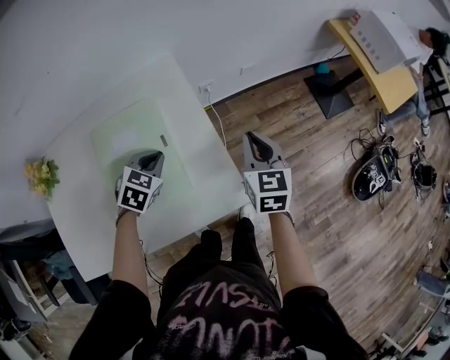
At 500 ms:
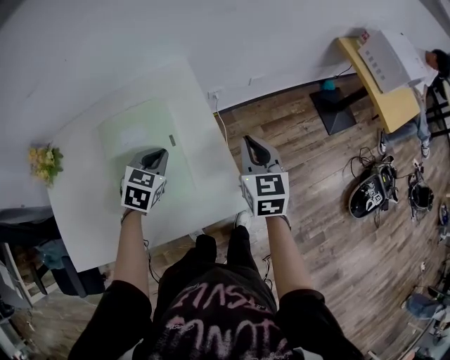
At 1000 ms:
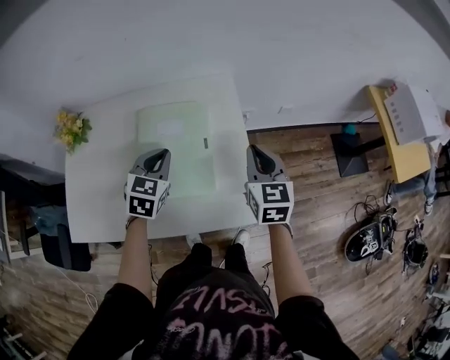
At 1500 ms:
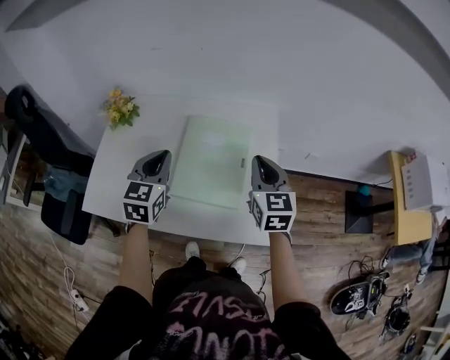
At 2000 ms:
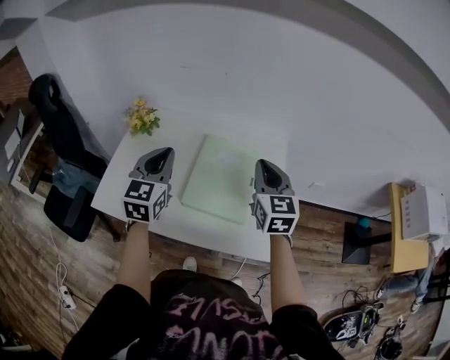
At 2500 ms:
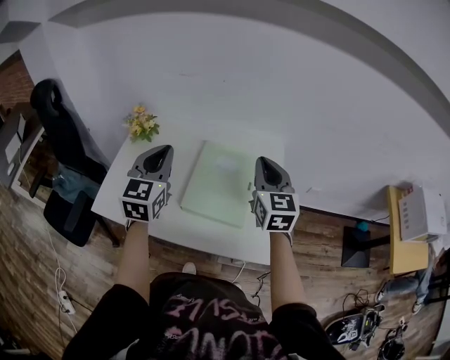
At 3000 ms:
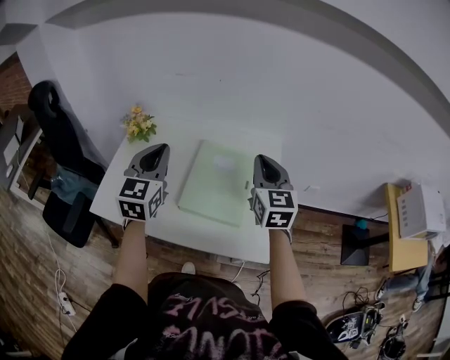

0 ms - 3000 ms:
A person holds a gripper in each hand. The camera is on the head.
0 ms - 1500 ms: The right gripper shifts by about 25 cm, and turns by approximately 30 degrees; the left gripper ends up about 30 cm from where it was, and points its fingers roughly 30 degrees further upward.
1500 ms - 3000 ms: The two grippers go roughly 10 cm upward.

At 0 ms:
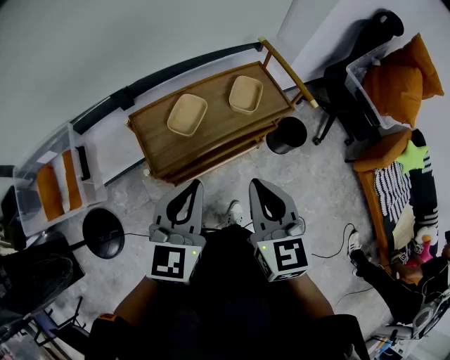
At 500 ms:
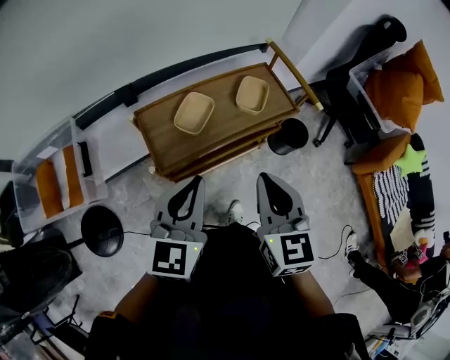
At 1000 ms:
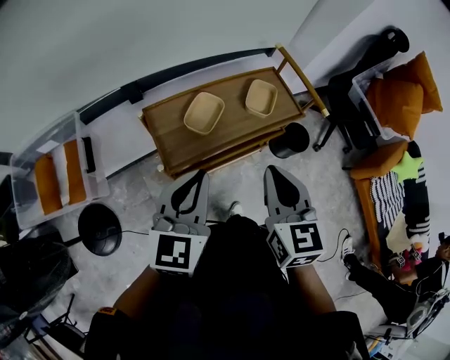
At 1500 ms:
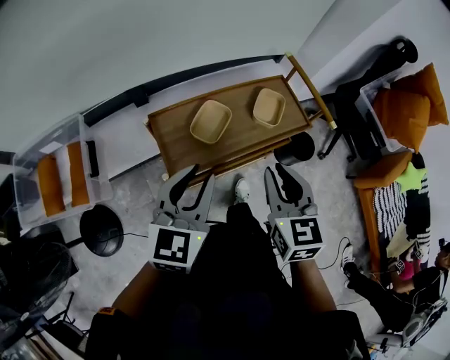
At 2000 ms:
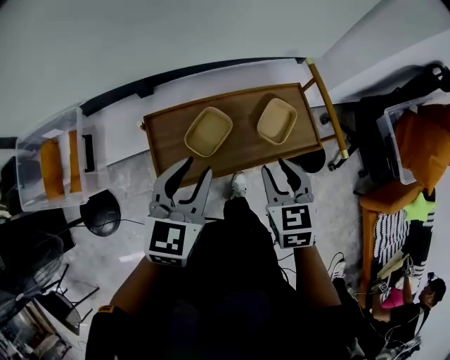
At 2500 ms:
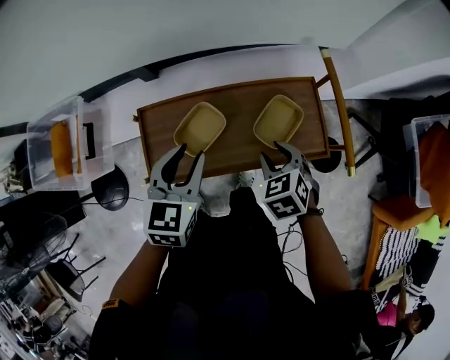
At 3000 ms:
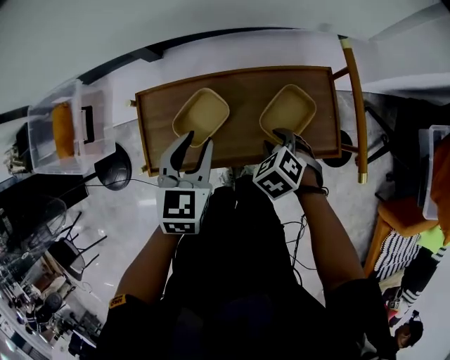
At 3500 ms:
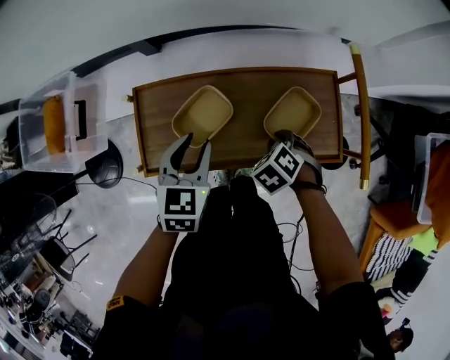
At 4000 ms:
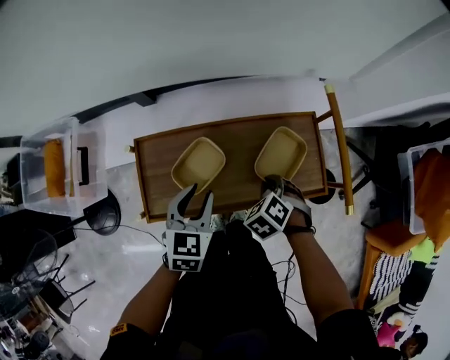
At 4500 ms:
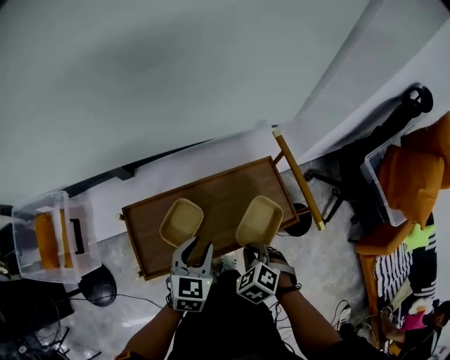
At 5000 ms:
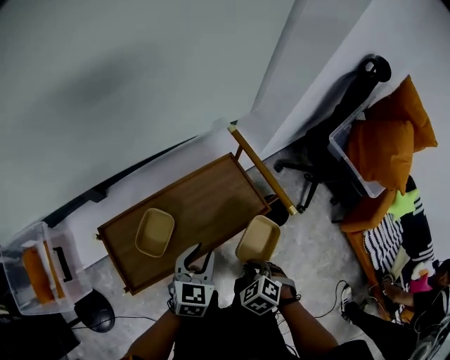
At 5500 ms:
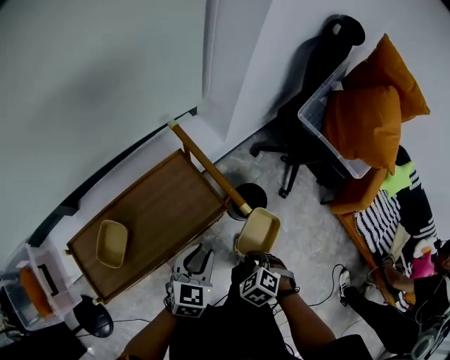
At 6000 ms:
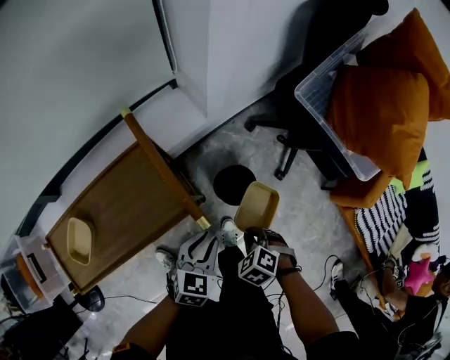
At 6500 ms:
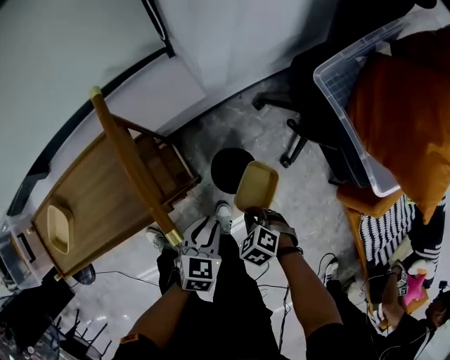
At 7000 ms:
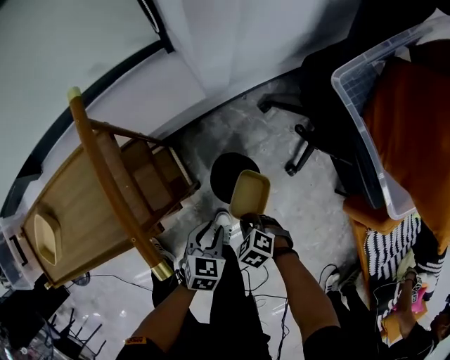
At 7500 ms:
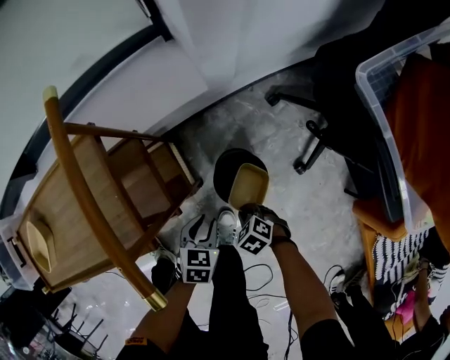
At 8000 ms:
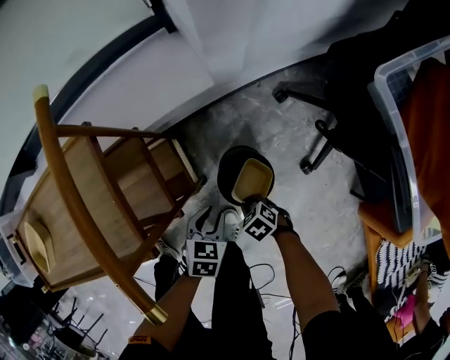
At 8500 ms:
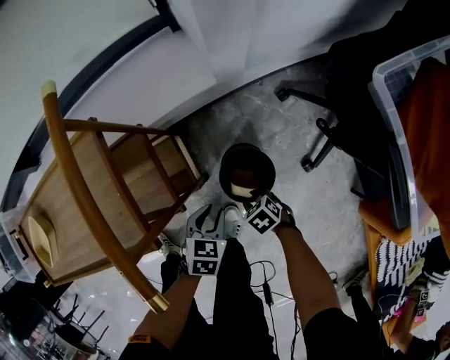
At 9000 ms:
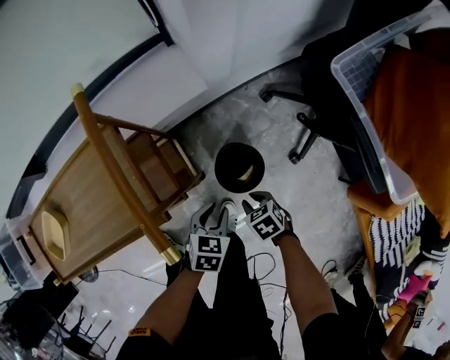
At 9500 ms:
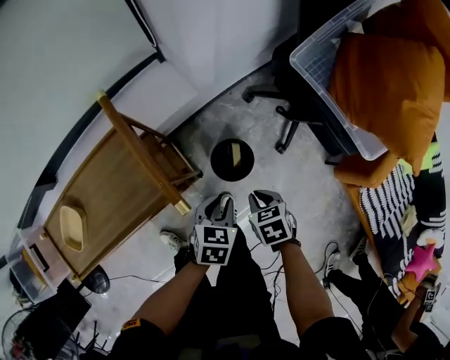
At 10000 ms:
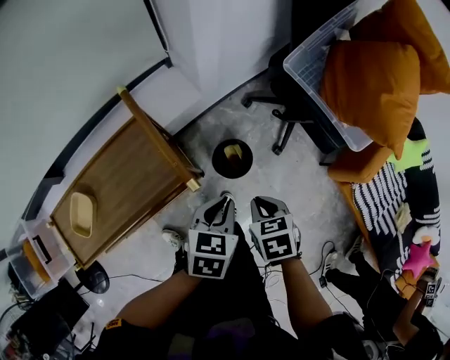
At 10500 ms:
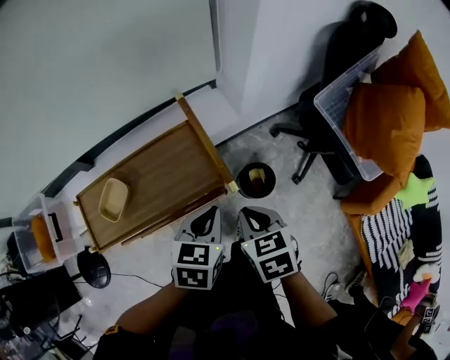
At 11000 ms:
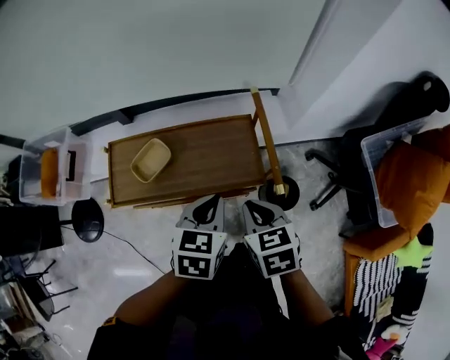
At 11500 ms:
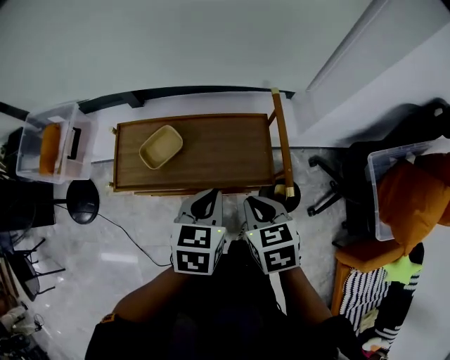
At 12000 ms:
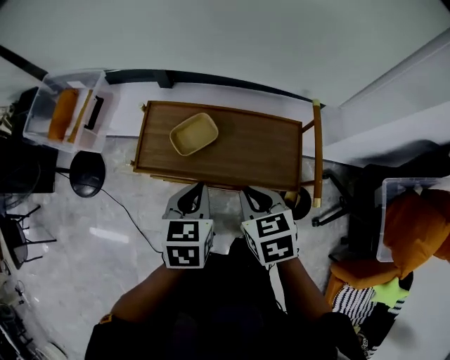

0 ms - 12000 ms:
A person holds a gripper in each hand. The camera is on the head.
0 ms - 2000 ms: The left gripper goes about 15 cm forward, and opens its fingers; the right gripper is displaced forward and downward by roughly 20 cm, changes its angle by roughly 20 degrees, and opens.
2000 ms - 4000 ms: The two grippers go some 20 cm downward. The right gripper tips its fingers downward by approximately 30 degrees, and closes.
4000 ms - 6000 ms: The pair of grippers is taken to the right, some 40 cm. The left gripper rotates about 40 degrees, while the right gripper changes its angle by roughly 20 degrees.
6000 ms - 8000 ms: Both grippers move downward, roughly 30 cm. The right gripper turns by roughly 20 degrees, while the left gripper rotates about 30 degrees.
8000 ms - 10000 ms: Both grippers travel together upward, some 40 cm. The right gripper rotates some 50 degrees, and opens and closes again.
10000 ms - 12000 ms: The pair of grippers is taken about 40 cm. The left gripper changes its angle by some 50 degrees; the right gripper rotates around the line of its fingers by roughly 40 degrees, counterclockwise from behind.

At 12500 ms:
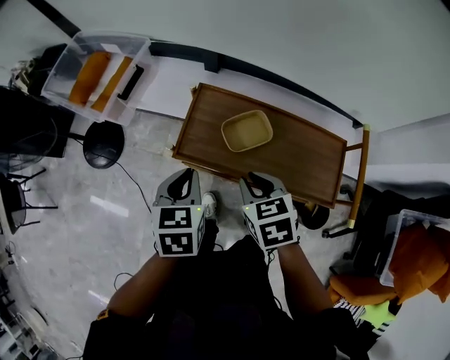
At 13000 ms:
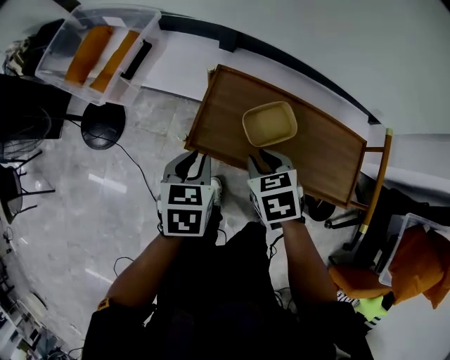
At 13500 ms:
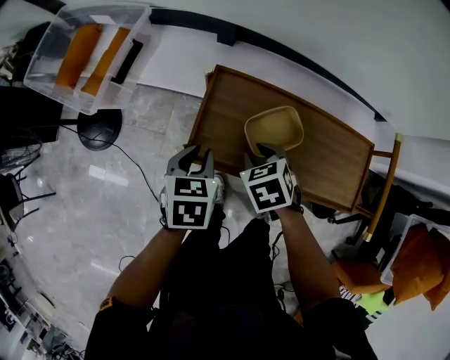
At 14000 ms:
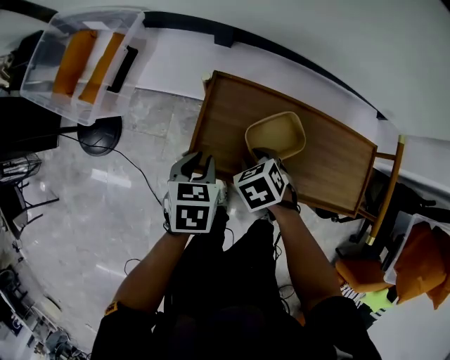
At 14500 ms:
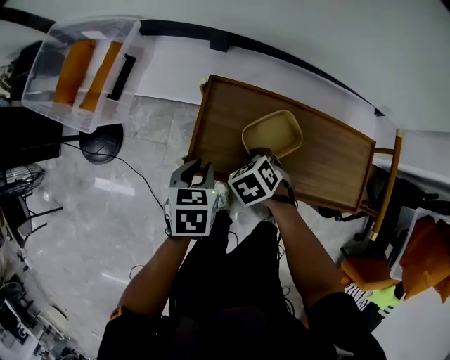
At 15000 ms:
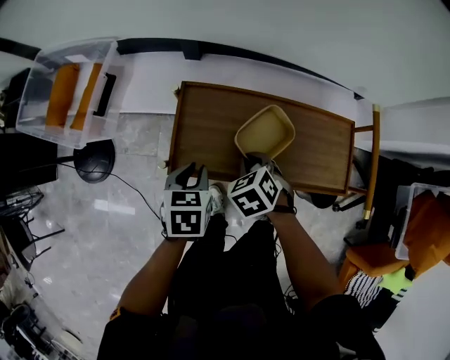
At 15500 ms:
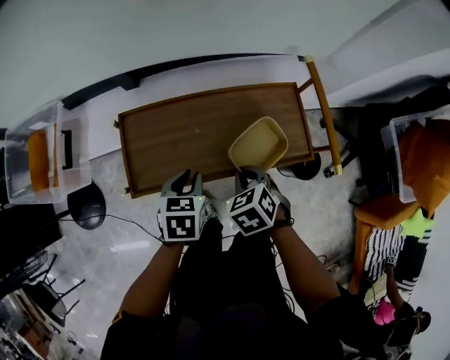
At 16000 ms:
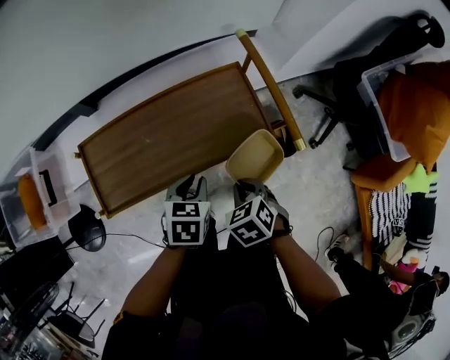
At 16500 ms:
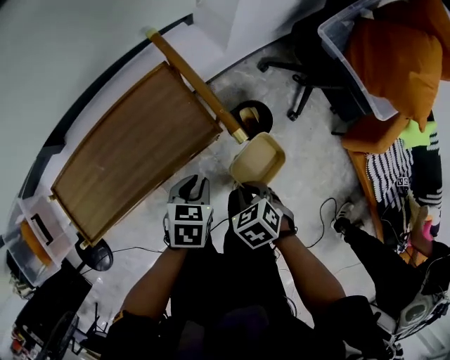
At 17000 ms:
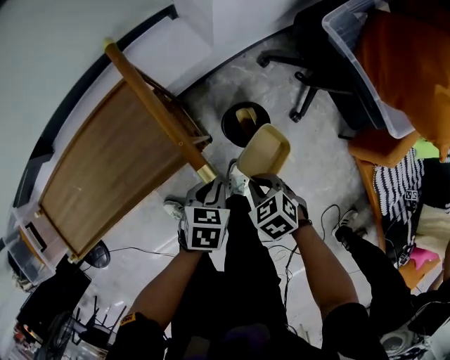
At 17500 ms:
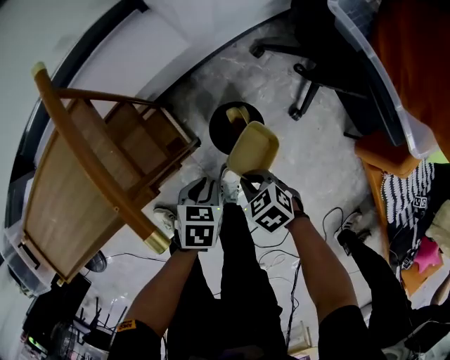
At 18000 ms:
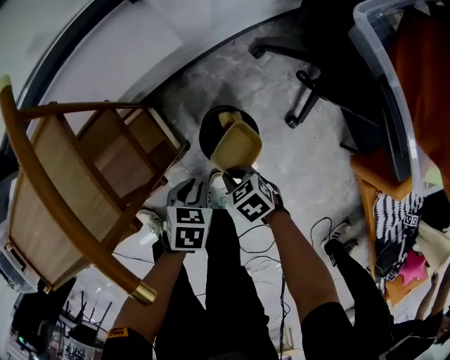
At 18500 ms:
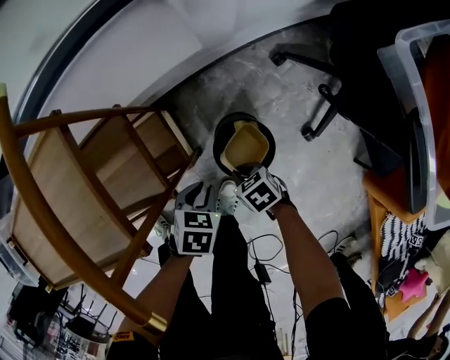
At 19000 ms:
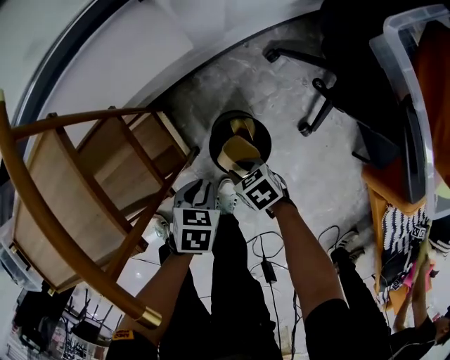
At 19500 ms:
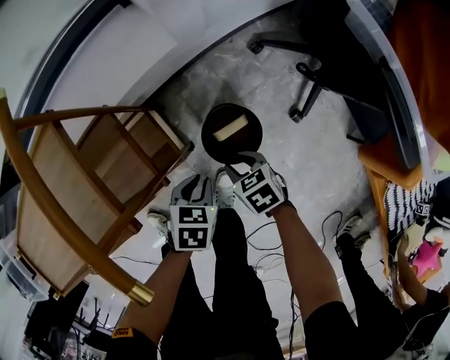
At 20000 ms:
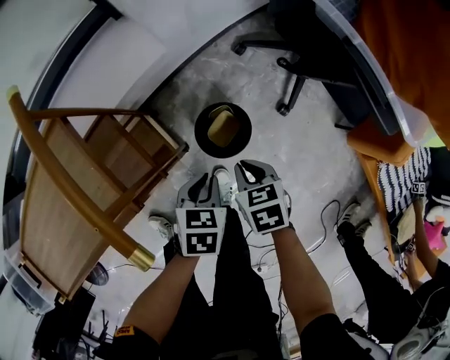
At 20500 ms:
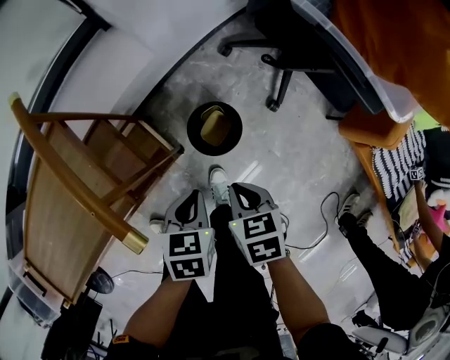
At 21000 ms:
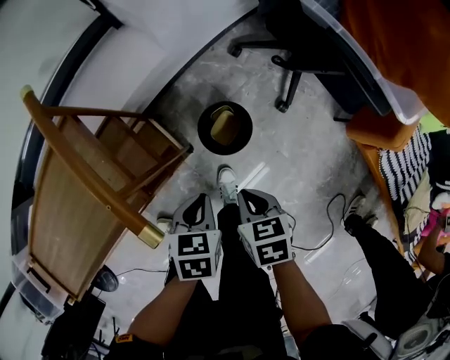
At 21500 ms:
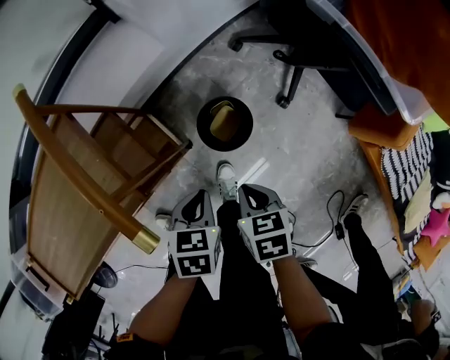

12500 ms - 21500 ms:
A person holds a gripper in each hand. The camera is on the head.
12500 ms - 14500 ms: The grippers both shift downward by roughly 15 cm. The right gripper swivels some 30 degrees.
14500 ms - 17000 ms: Both grippers are carried roughly 60 cm. The right gripper turns by about 40 degrees, while the left gripper rotates around the line of its fingers by approximately 40 degrees, clockwise from behind.
17000 ms - 19500 ms: The two grippers go approximately 20 cm downward. The right gripper opens.
19500 ms - 21500 ms: The grippers both shift upward and backward by approximately 15 cm. The right gripper rotates roughly 30 degrees, and closes its fingers.

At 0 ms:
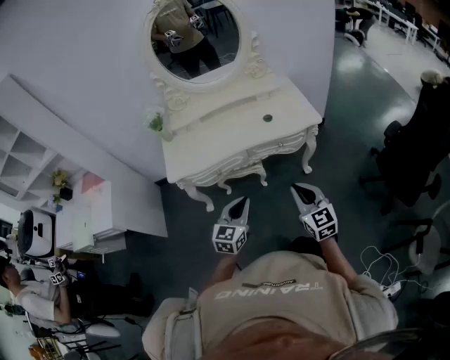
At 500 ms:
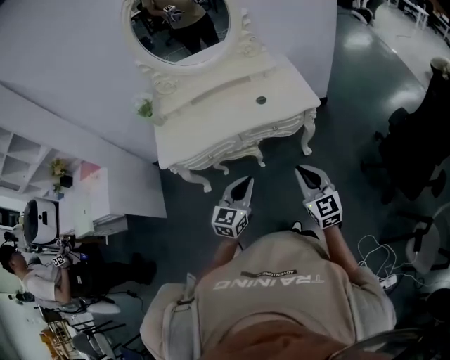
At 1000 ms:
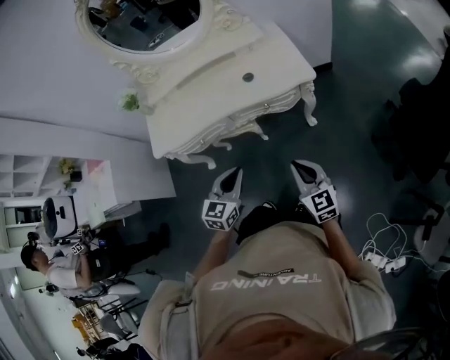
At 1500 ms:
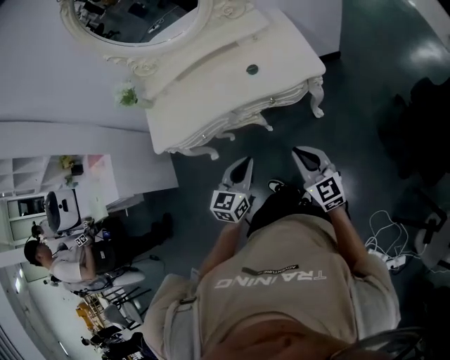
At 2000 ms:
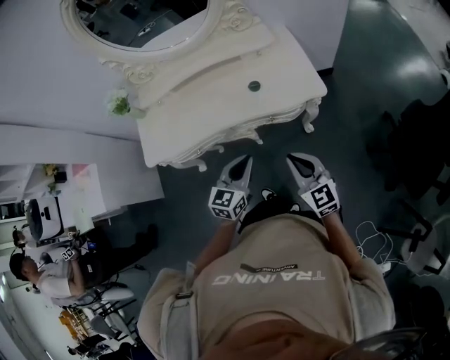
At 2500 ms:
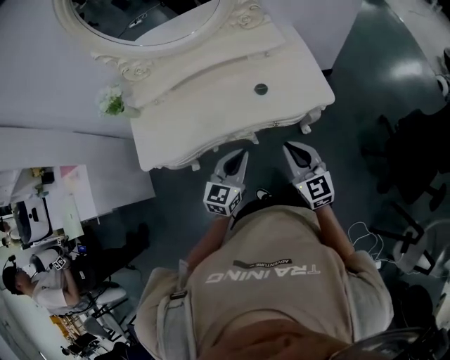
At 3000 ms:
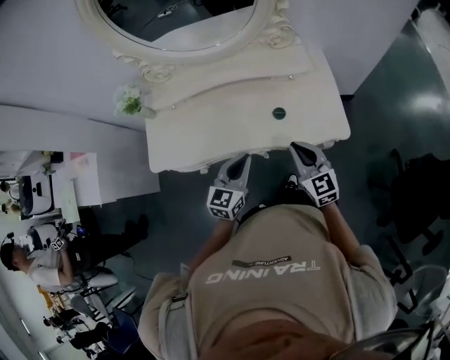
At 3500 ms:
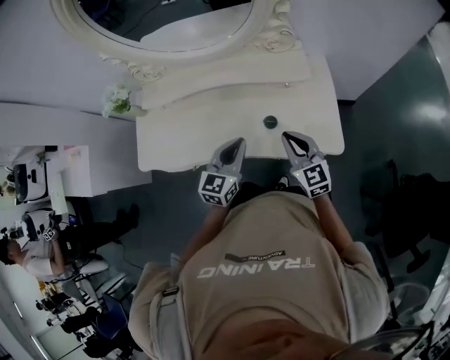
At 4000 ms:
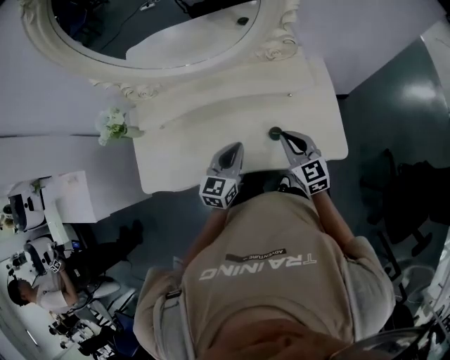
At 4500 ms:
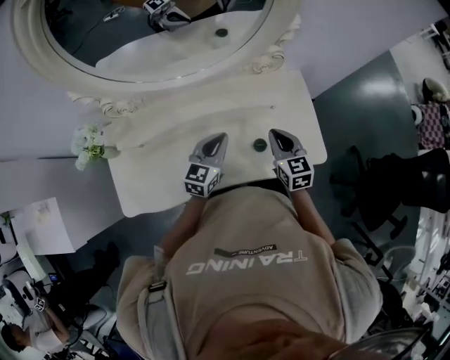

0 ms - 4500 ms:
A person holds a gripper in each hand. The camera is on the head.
0 ms - 2000 ms: Both grippers travel together forward and to the right, about 25 cm.
2000 ms - 4500 ms: The pair of grippers is taken forward, roughly 40 cm. The right gripper swivels approximately 20 degrees.
